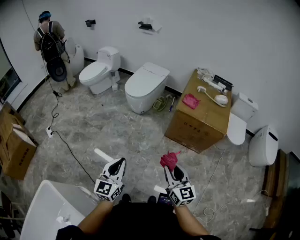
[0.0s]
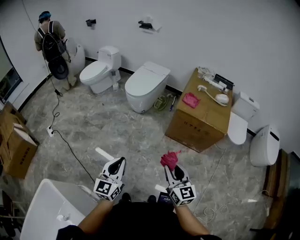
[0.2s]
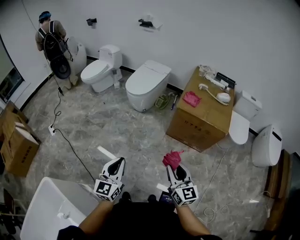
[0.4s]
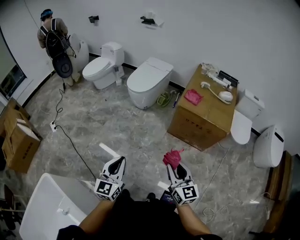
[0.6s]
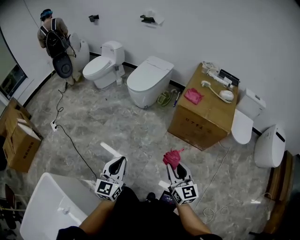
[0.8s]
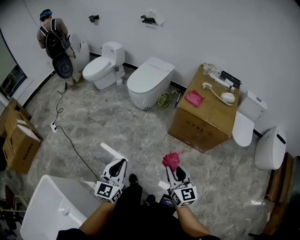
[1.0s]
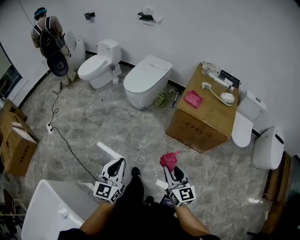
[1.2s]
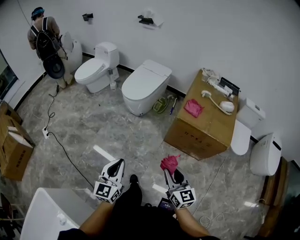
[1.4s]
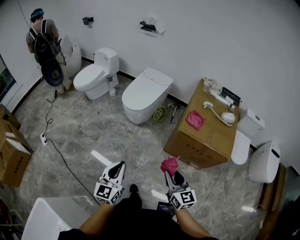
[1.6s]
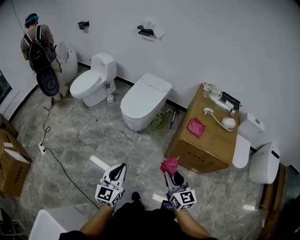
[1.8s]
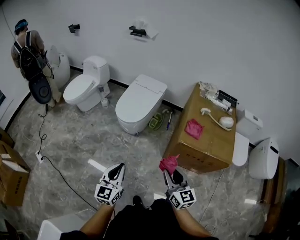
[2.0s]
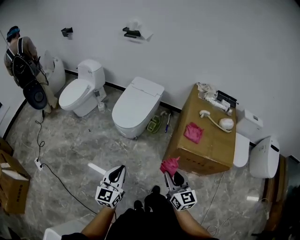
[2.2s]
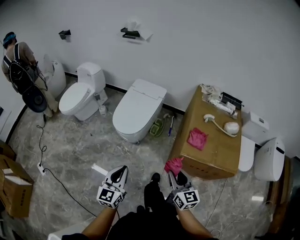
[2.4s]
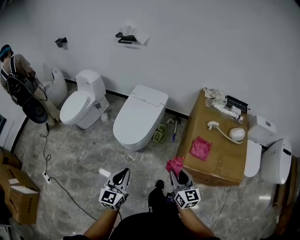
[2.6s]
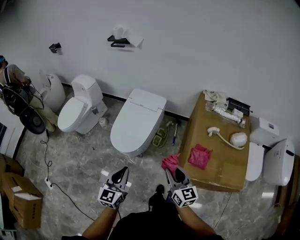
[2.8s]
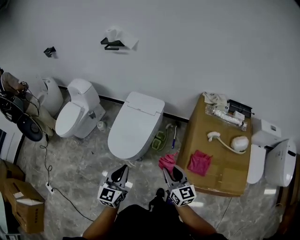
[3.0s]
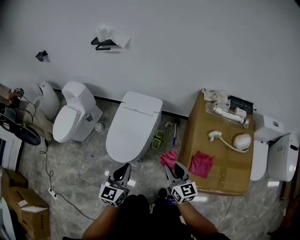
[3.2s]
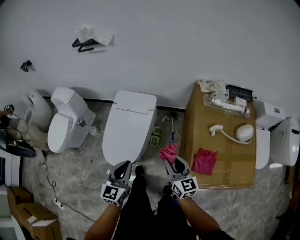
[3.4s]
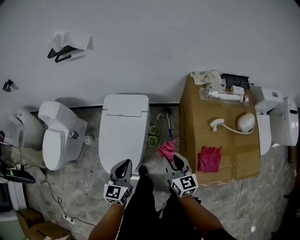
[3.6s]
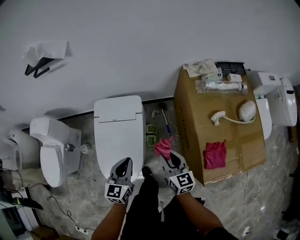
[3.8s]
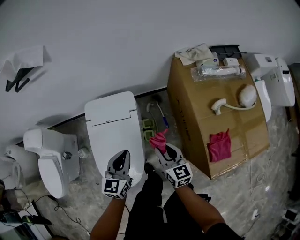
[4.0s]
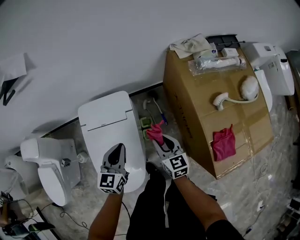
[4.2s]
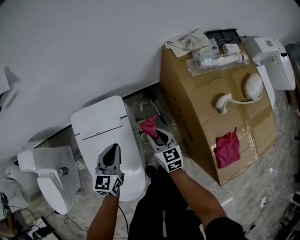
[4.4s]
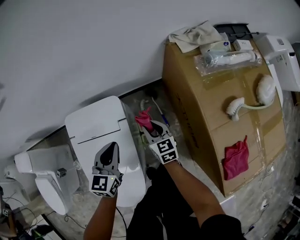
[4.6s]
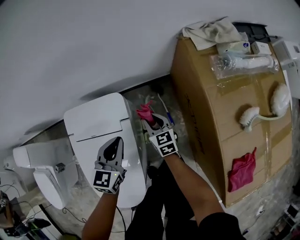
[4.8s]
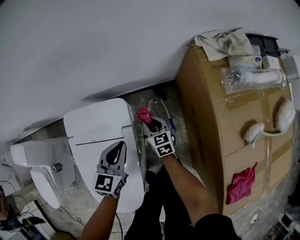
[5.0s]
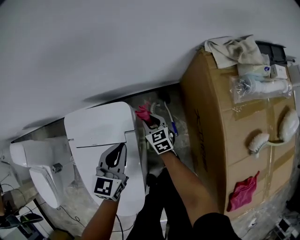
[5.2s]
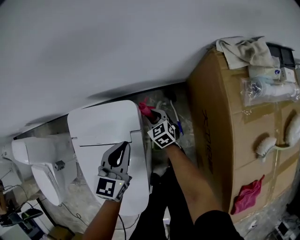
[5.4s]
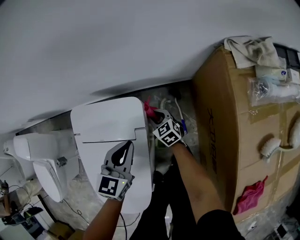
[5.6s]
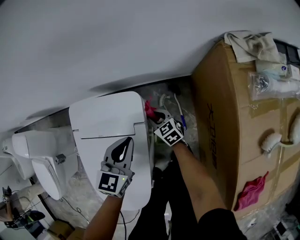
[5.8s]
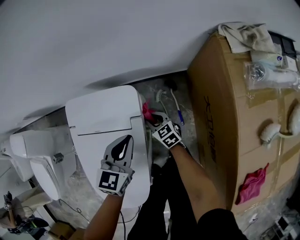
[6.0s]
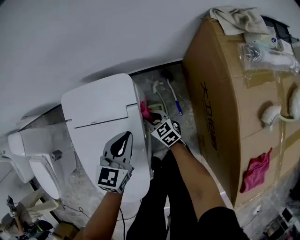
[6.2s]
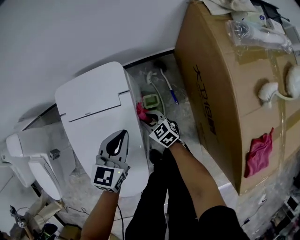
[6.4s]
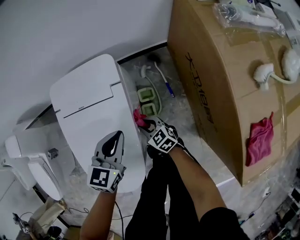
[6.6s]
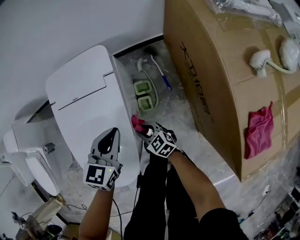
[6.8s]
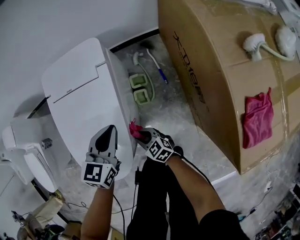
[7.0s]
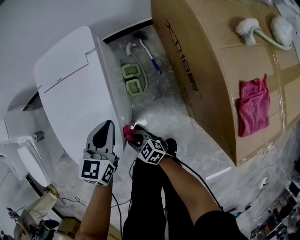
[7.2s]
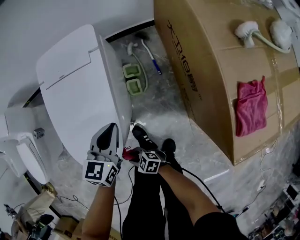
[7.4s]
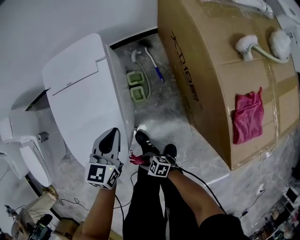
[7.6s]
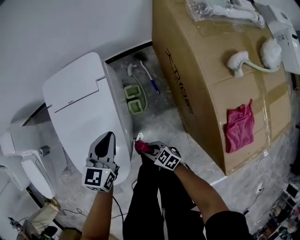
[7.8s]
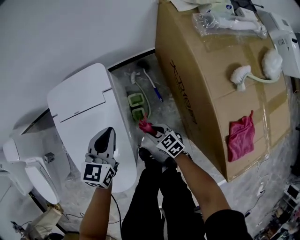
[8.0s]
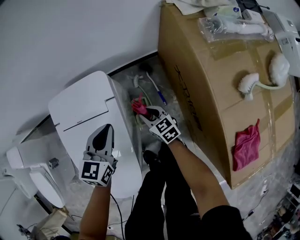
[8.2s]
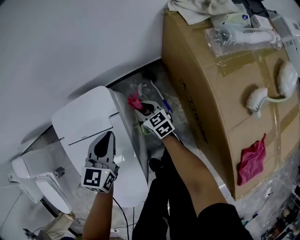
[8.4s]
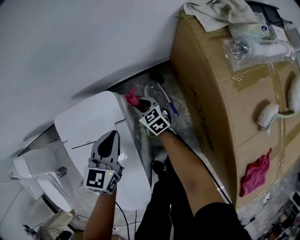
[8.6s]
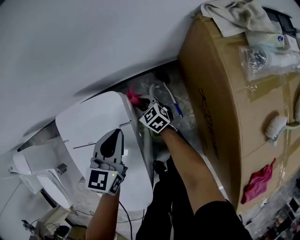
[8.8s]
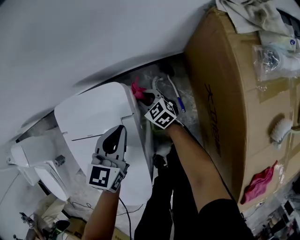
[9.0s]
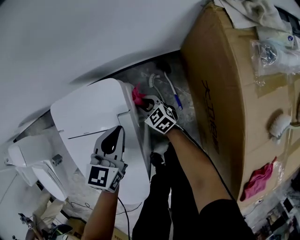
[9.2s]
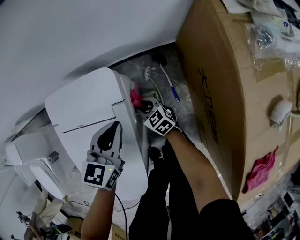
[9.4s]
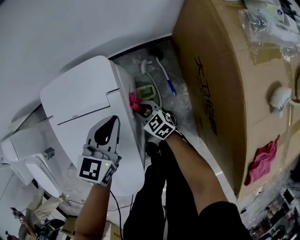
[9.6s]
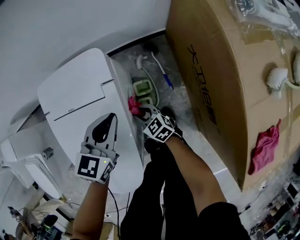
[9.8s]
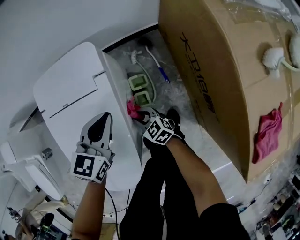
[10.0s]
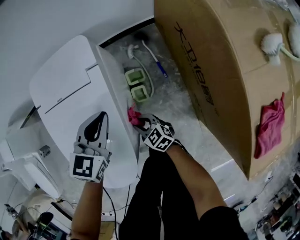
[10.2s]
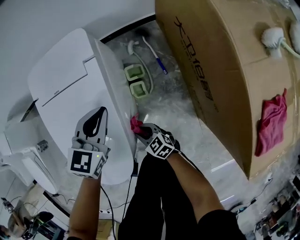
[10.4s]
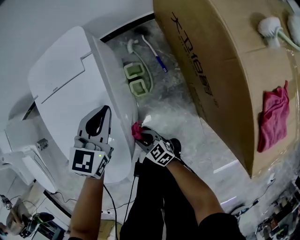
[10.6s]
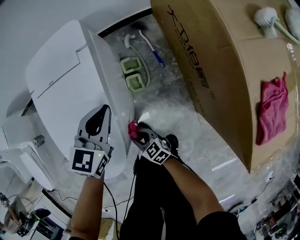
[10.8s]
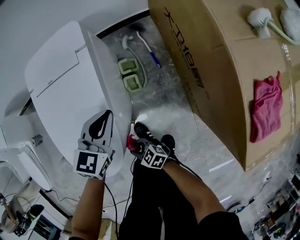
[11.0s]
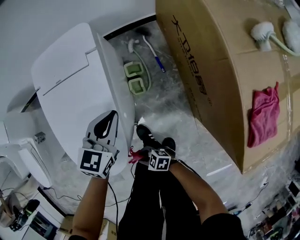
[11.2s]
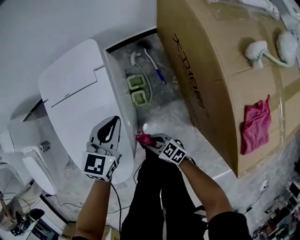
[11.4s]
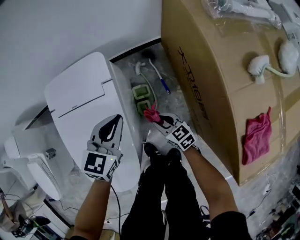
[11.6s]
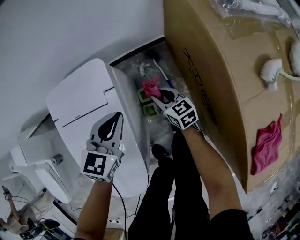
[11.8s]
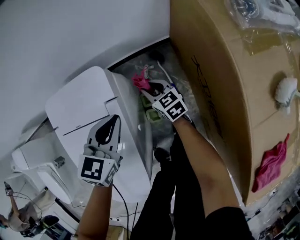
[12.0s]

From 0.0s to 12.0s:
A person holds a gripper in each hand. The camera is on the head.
From 0.0s to 1.6s: The two grippers go some 20 cm forward.
From 1.6s to 3.0s: The pair of grippers is taken forward, approximately 50 cm.
From 3.0s to 4.4s: The right gripper moves about 50 cm, and swivels approximately 30 degrees. The left gripper moves roughly 50 cm, and turns by some 30 degrees.
From 4.4s to 6.0s: The right gripper moves downward and forward, about 25 cm, and turns by some 30 degrees. Meanwhile the left gripper goes roughly 15 cm downward and forward.
From 6.0s to 7.6s: The left gripper changes place by some 20 cm; the right gripper changes place by approximately 50 cm, and swivels about 30 degrees.
From 7.6s to 9.0s: The right gripper moves about 60 cm, and changes its angle by approximately 30 degrees, while the left gripper ends up about 25 cm from where it was.
From 9.0s to 10.4s: The left gripper is displaced backward by some 15 cm. Meanwhile the right gripper heads backward, covering about 40 cm.
From 10.4s to 12.0s: The left gripper moves about 10 cm, while the right gripper changes place by roughly 35 cm.

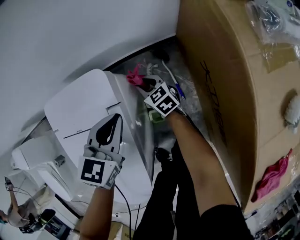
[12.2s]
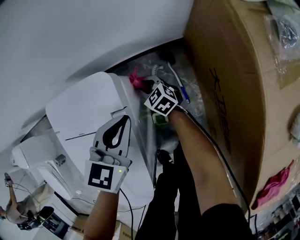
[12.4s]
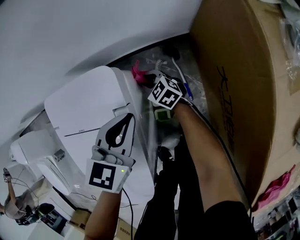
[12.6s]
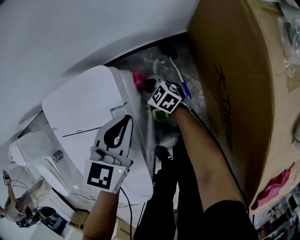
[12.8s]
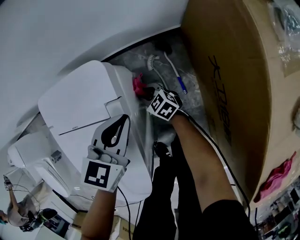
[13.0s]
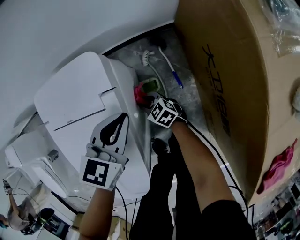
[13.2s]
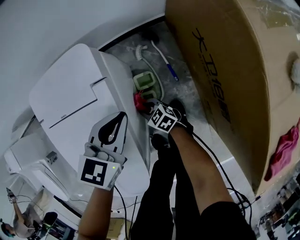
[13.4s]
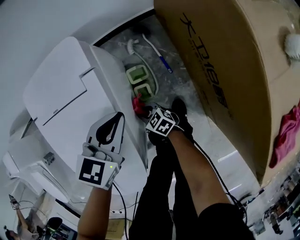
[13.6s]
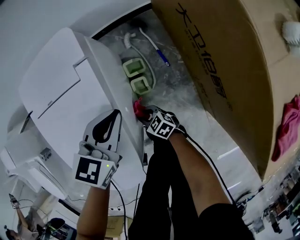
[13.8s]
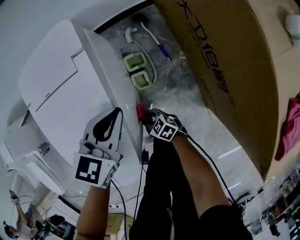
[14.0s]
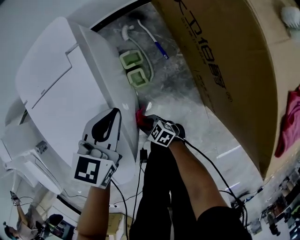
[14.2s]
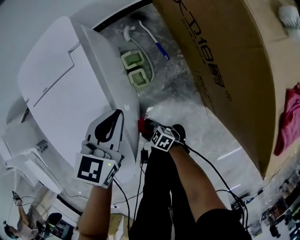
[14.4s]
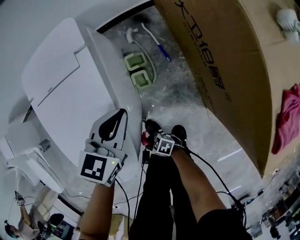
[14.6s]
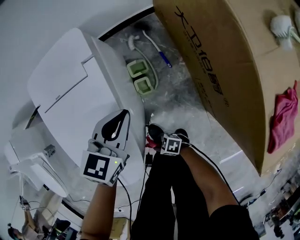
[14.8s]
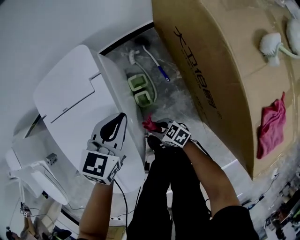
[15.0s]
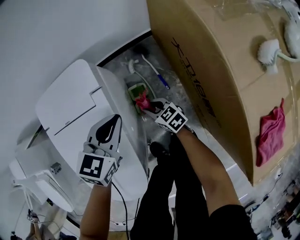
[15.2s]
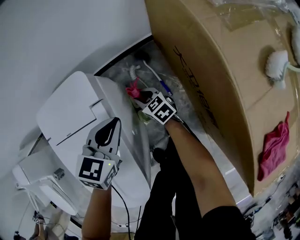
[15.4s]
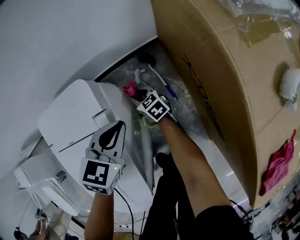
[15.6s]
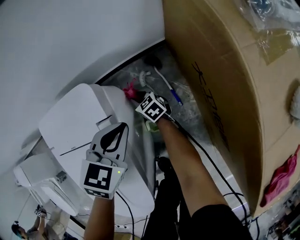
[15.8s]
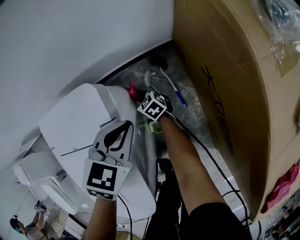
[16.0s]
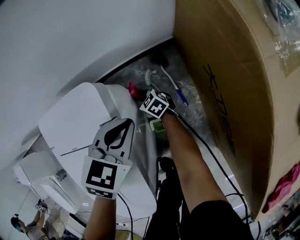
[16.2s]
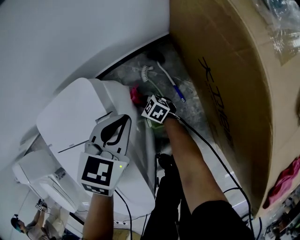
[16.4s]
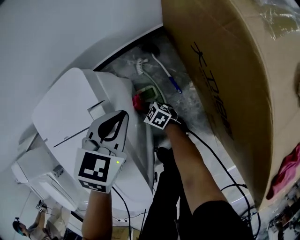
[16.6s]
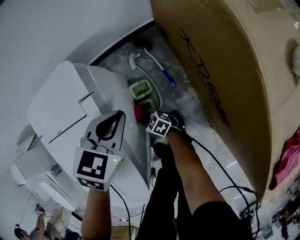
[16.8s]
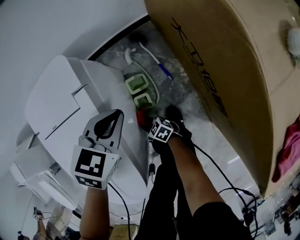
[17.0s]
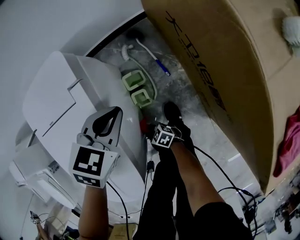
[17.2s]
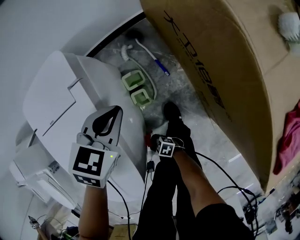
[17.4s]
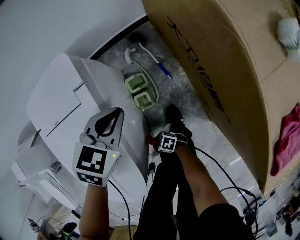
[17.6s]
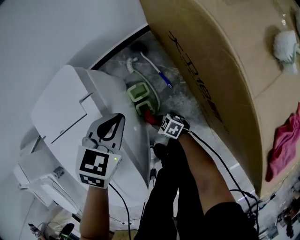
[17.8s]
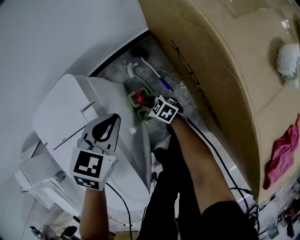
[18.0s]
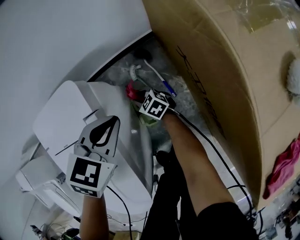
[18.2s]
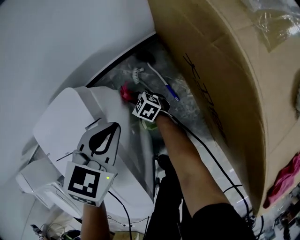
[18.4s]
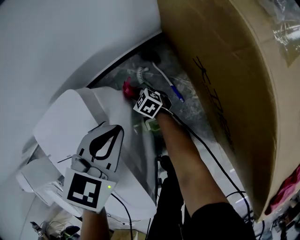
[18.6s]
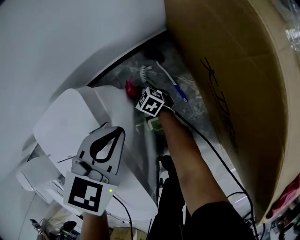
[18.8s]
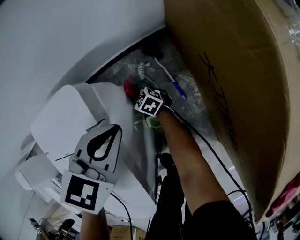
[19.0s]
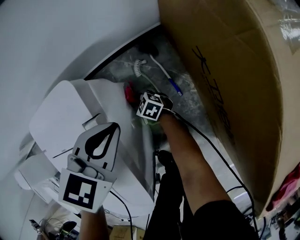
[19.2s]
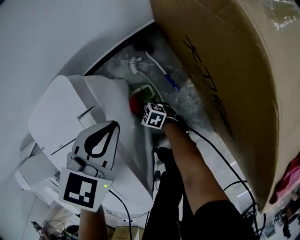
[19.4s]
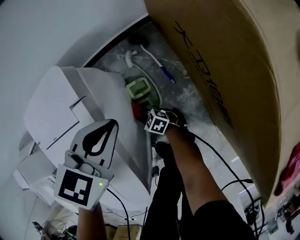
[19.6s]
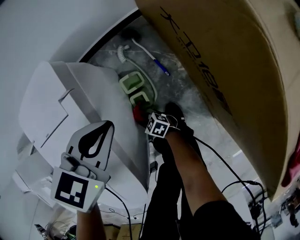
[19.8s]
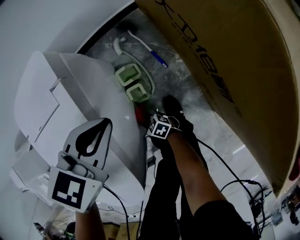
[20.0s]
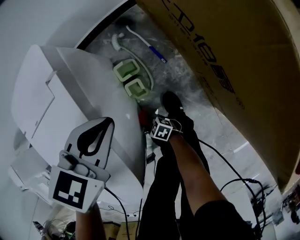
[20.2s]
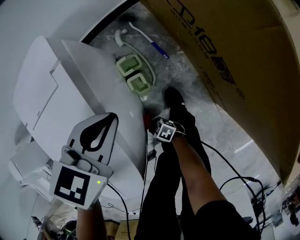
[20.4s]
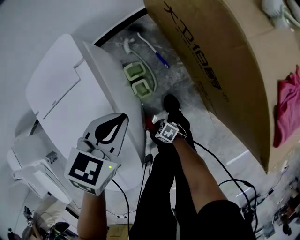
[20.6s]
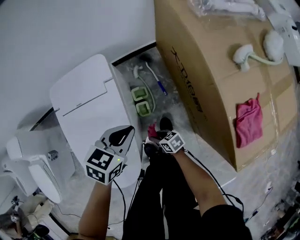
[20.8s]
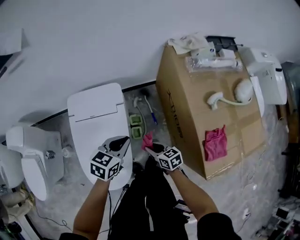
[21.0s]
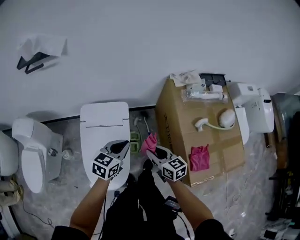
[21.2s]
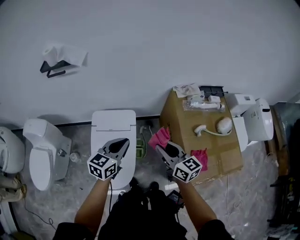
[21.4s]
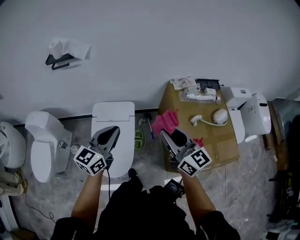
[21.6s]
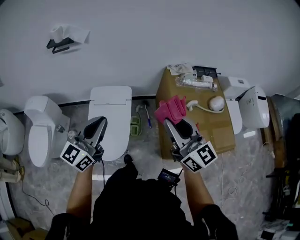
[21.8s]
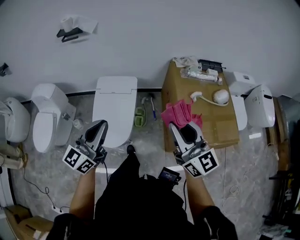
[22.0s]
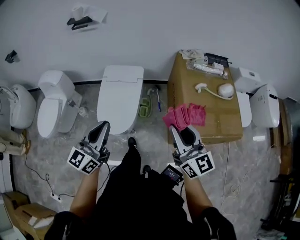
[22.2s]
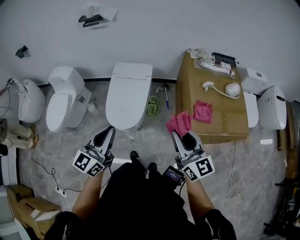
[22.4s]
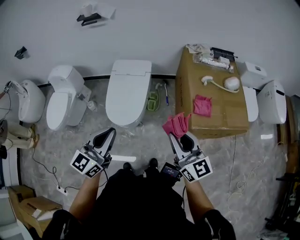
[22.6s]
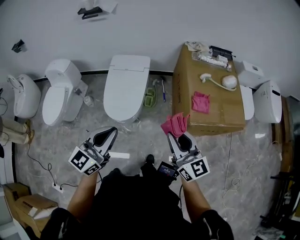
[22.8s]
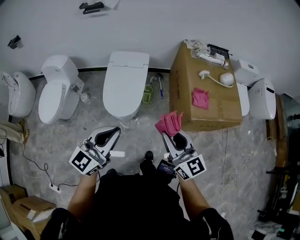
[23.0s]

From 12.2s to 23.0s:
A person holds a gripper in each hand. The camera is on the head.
From 12.2s to 13.8s: The right gripper heads backward, covering approximately 30 cm, while the left gripper shifts roughly 15 cm backward.
From 13.8s to 15.2s: The right gripper changes place by approximately 20 cm. Meanwhile the left gripper moves approximately 5 cm.
From 15.2s to 16.8s: The left gripper is displaced downward by about 5 cm, while the right gripper shifts about 15 cm downward.
From 16.8s to 18.4s: The left gripper changes place by about 5 cm, while the right gripper shifts by some 20 cm.
From 18.4s to 20.0s: The right gripper changes place by approximately 30 cm. The left gripper shifts by some 10 cm.
From 20.0s to 21.4s: The right gripper heads upward, covering some 80 cm, and tips its fingers upward by about 30 degrees. The left gripper shifts some 40 cm upward, and tilts its fingers approximately 40 degrees upward.
From 21.4s to 23.0s: Both grippers are carried backward, about 40 cm. The left gripper turns by about 20 degrees.

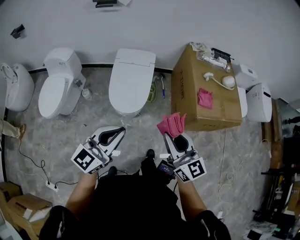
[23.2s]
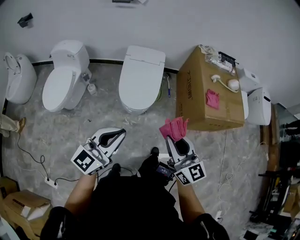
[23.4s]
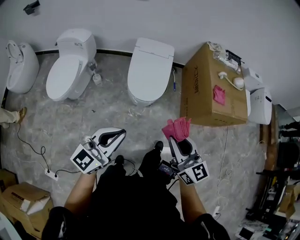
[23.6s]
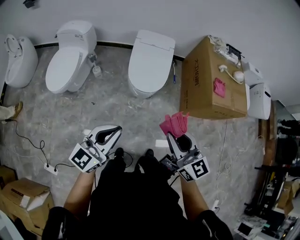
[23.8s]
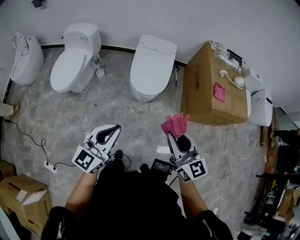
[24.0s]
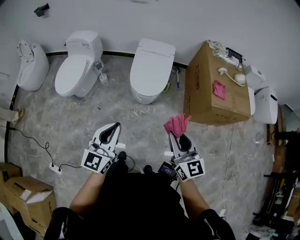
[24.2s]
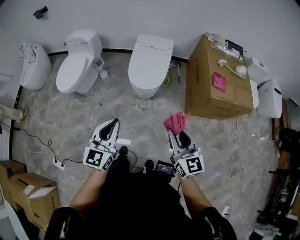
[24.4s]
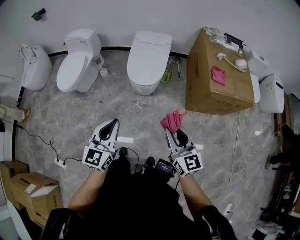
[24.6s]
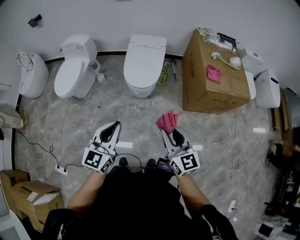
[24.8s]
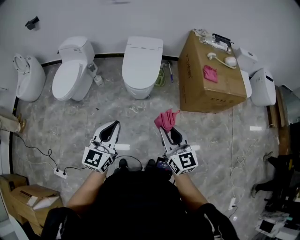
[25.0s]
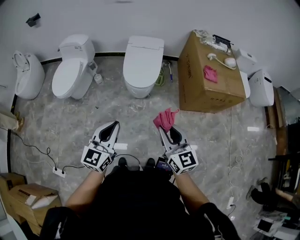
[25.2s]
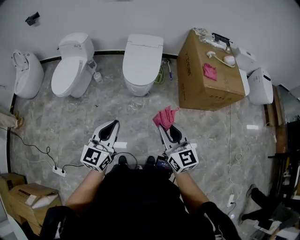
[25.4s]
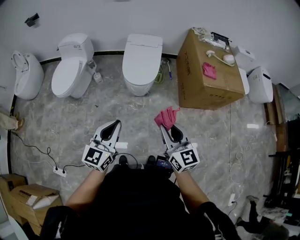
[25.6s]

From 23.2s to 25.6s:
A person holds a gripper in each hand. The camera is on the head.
From 23.2s to 24.4s: The right gripper travels backward by some 15 cm. The left gripper travels backward and to the left by some 20 cm, and rotates about 30 degrees.
From 24.4s to 25.6s: The left gripper shifts approximately 5 cm backward. Meanwhile the right gripper shifts about 10 cm backward and to the left.
